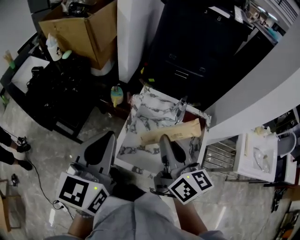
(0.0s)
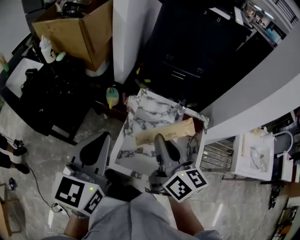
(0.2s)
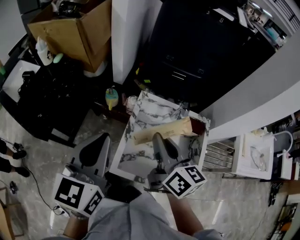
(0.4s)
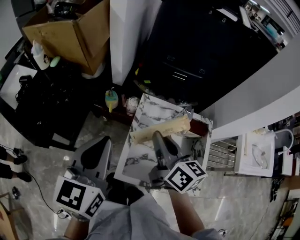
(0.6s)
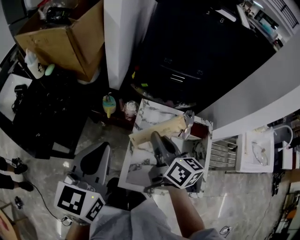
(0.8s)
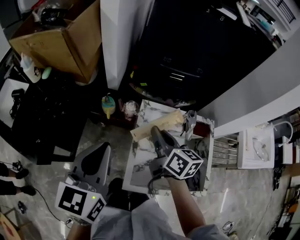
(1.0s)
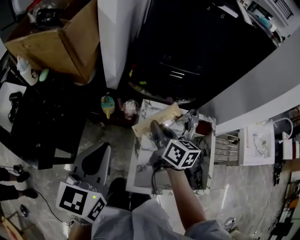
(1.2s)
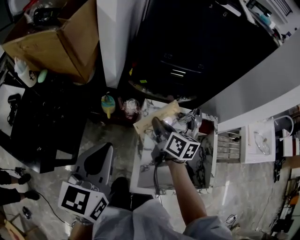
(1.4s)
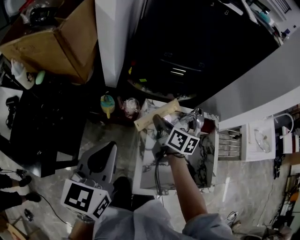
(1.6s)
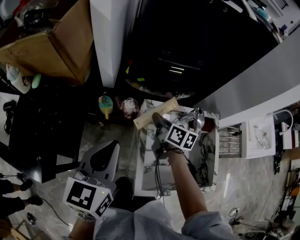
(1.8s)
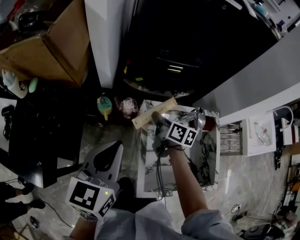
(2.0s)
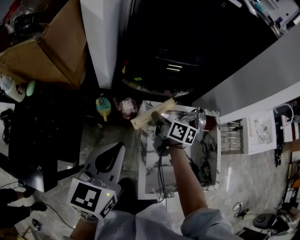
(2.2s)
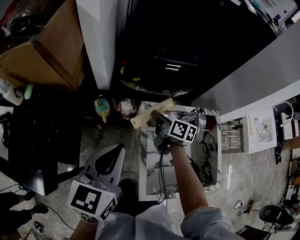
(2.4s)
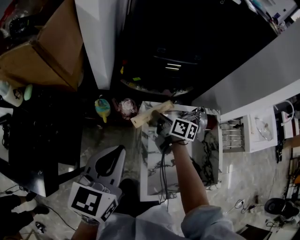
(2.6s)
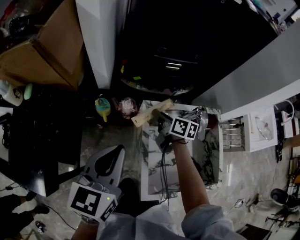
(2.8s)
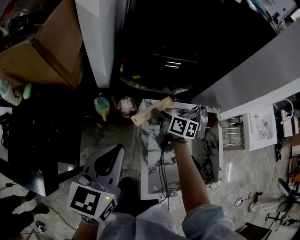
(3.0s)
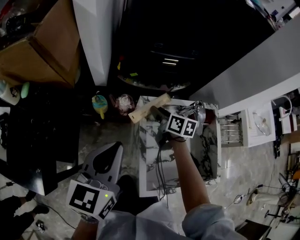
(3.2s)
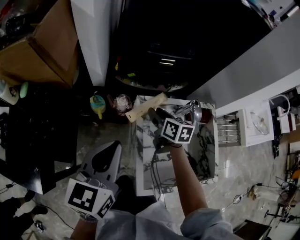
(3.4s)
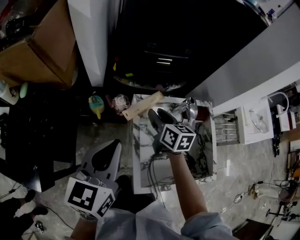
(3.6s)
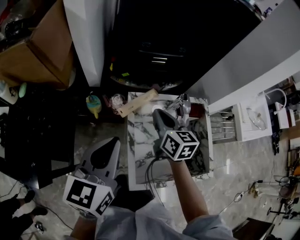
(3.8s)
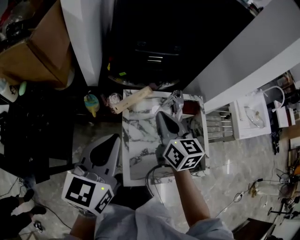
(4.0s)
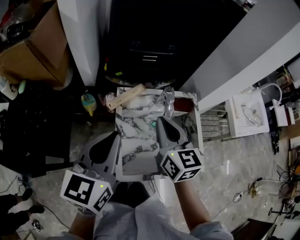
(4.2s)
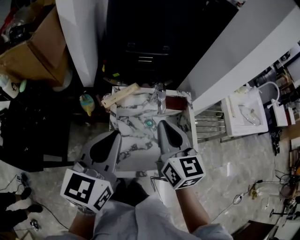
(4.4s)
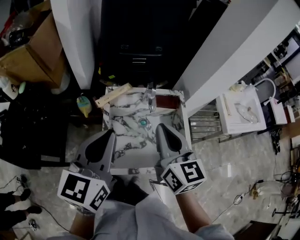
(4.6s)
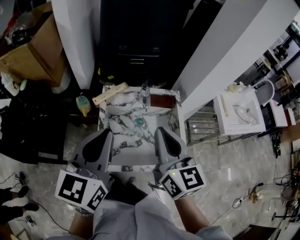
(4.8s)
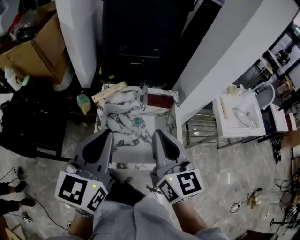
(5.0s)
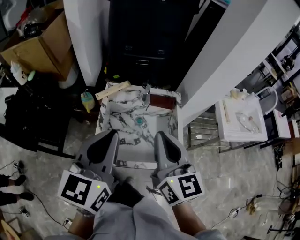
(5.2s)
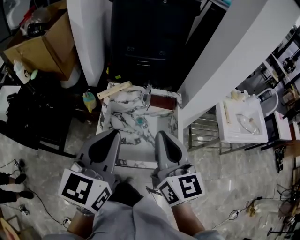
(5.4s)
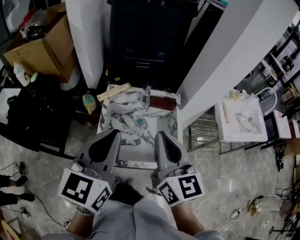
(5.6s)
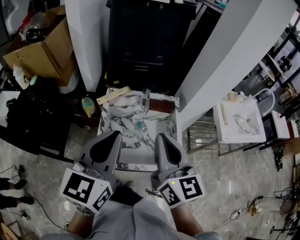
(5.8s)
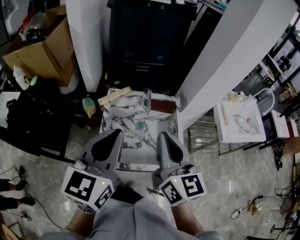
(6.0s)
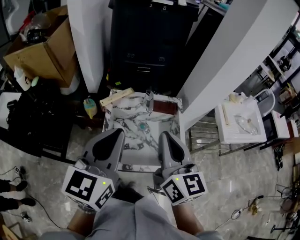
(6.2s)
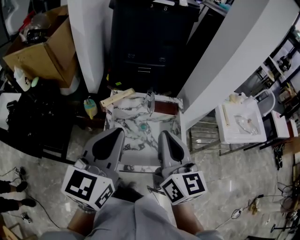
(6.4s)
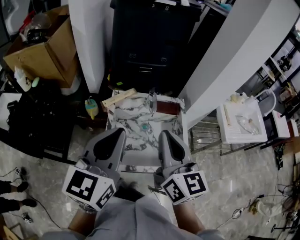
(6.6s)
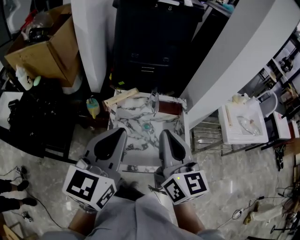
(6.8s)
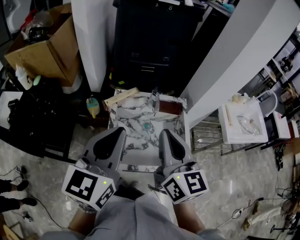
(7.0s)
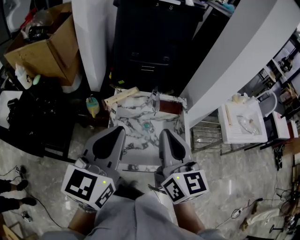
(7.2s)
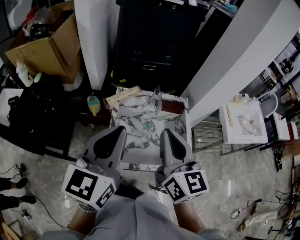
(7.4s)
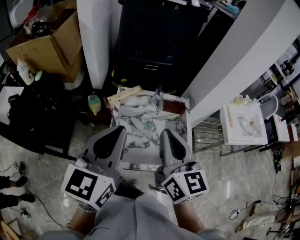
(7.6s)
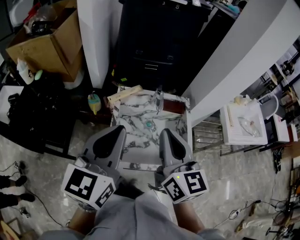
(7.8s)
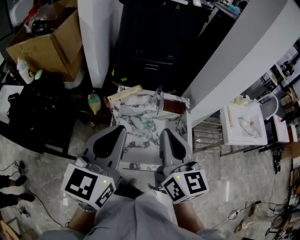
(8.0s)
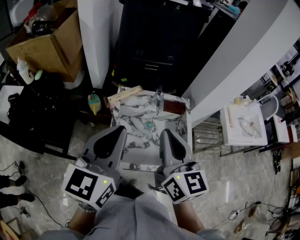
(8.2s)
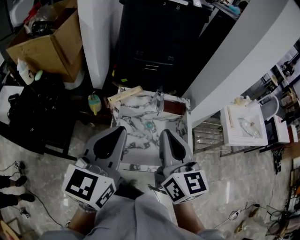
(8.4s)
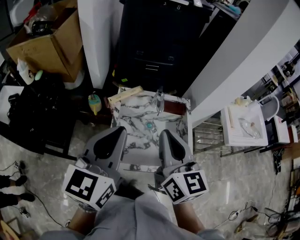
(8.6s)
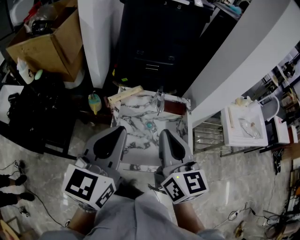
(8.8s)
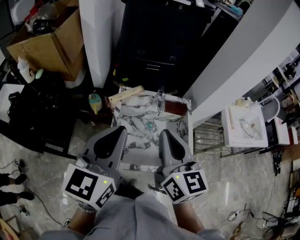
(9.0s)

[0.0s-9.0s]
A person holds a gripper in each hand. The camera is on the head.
0.0s to 1.6s: The right gripper travels forward and downward by about 30 cm, and changes its angle by about 30 degrees, while the left gripper moves forward, to the left and downward, some 20 cm.
1.6s to 3.0s: The right gripper moves downward and forward, some 10 cm, and opens its fingers; the left gripper shifts by about 5 cm.
3.0s to 4.4s: The right gripper travels upward, backward and to the right by roughly 35 cm, swivels some 40 degrees, and closes; the left gripper shifts about 20 cm to the right, backward and upward.
4.4s to 6.0s: The right gripper is displaced backward, to the right and upward by roughly 15 cm. Meanwhile the left gripper is displaced to the right, backward and upward by approximately 15 cm.
6.0s to 7.6s: The right gripper moves to the left, about 5 cm. Meanwhile the left gripper moves some 5 cm.
7.6s to 9.0s: The grippers move only a little.

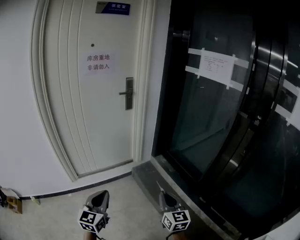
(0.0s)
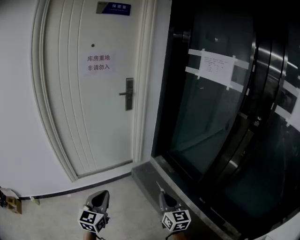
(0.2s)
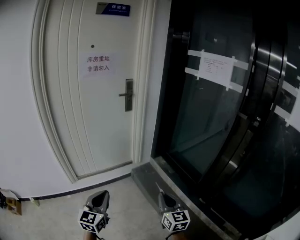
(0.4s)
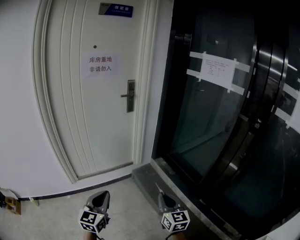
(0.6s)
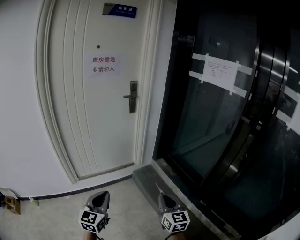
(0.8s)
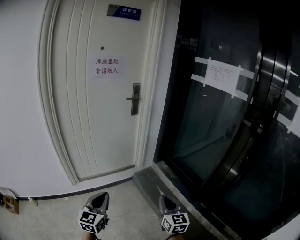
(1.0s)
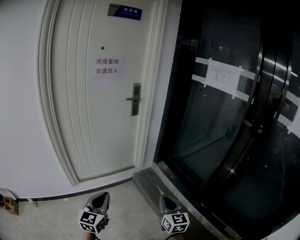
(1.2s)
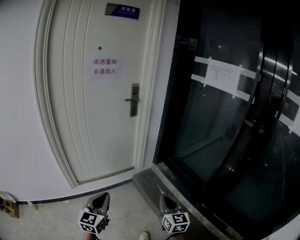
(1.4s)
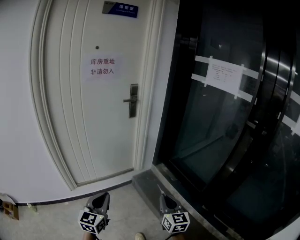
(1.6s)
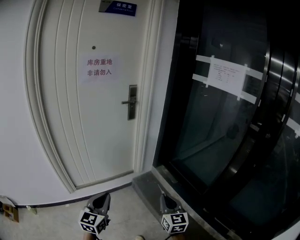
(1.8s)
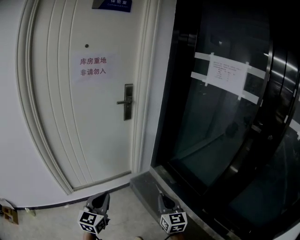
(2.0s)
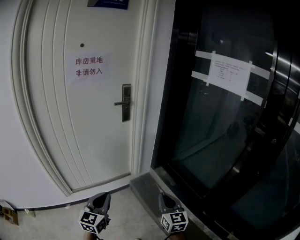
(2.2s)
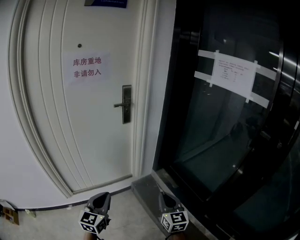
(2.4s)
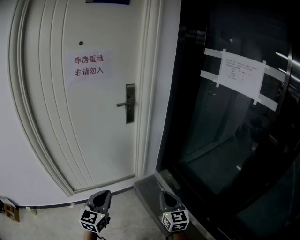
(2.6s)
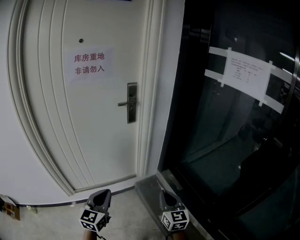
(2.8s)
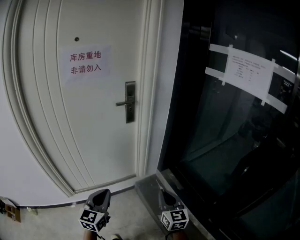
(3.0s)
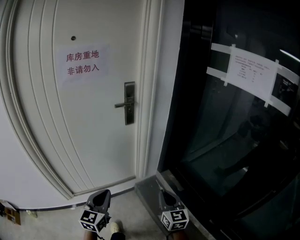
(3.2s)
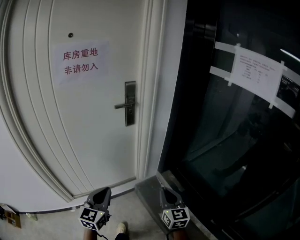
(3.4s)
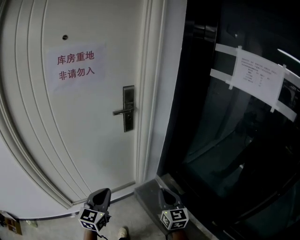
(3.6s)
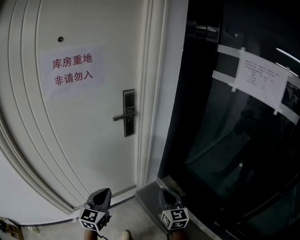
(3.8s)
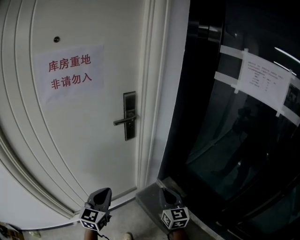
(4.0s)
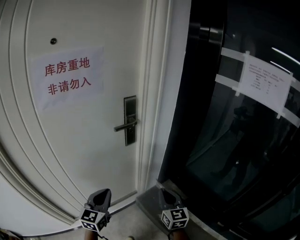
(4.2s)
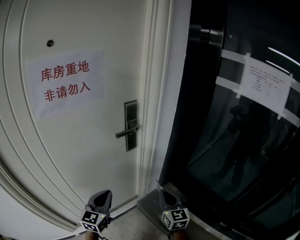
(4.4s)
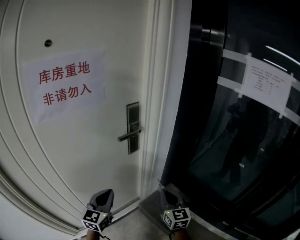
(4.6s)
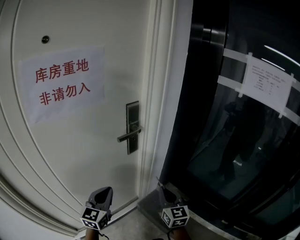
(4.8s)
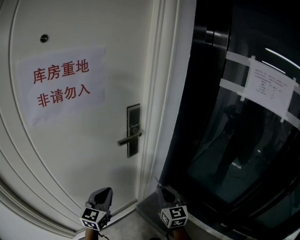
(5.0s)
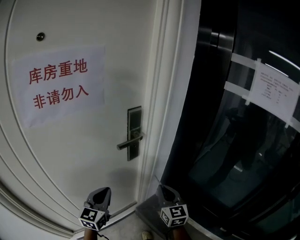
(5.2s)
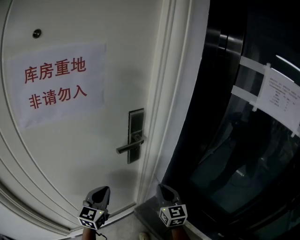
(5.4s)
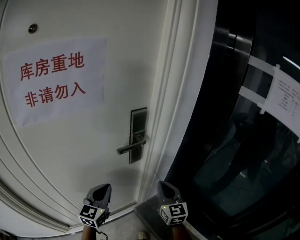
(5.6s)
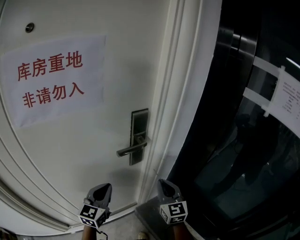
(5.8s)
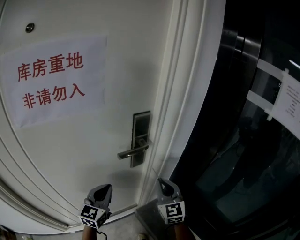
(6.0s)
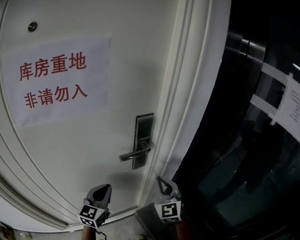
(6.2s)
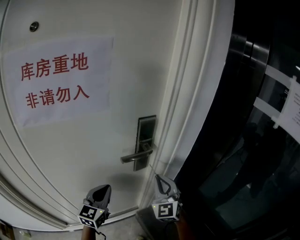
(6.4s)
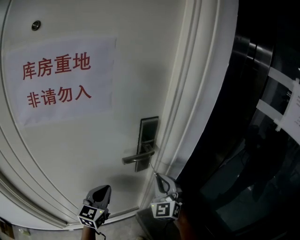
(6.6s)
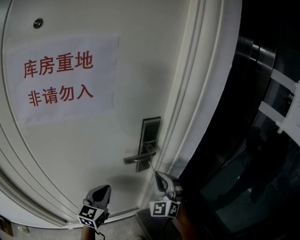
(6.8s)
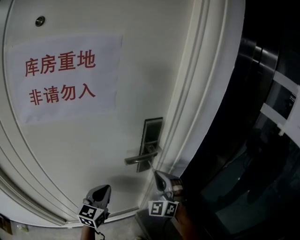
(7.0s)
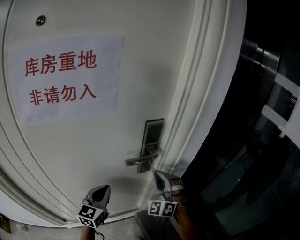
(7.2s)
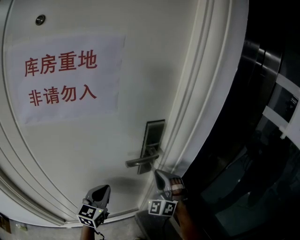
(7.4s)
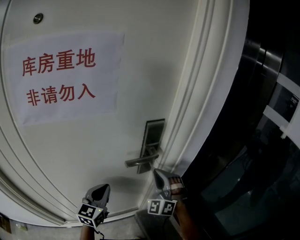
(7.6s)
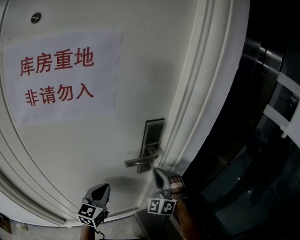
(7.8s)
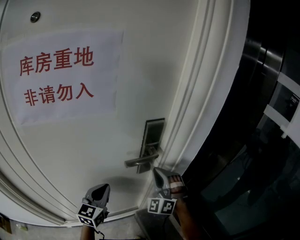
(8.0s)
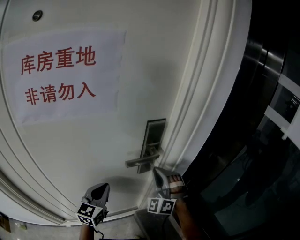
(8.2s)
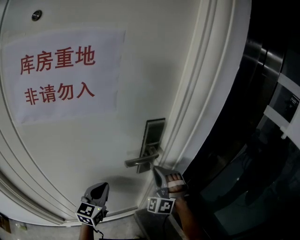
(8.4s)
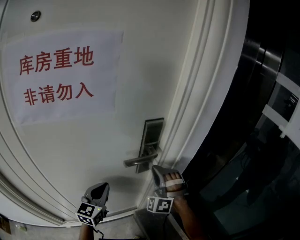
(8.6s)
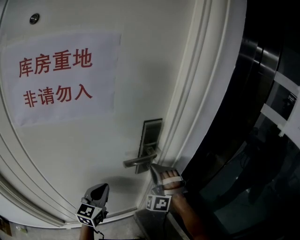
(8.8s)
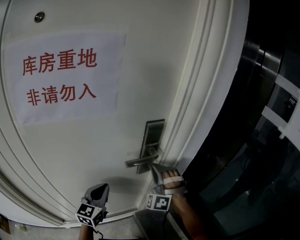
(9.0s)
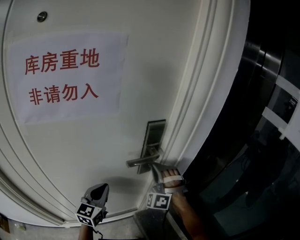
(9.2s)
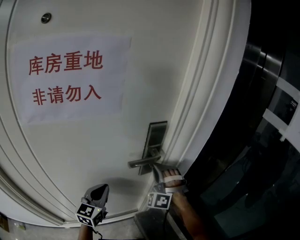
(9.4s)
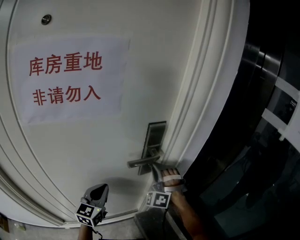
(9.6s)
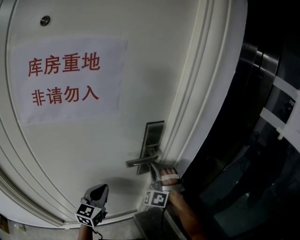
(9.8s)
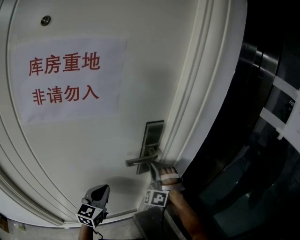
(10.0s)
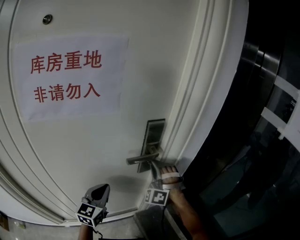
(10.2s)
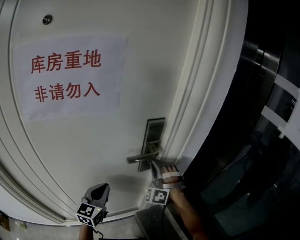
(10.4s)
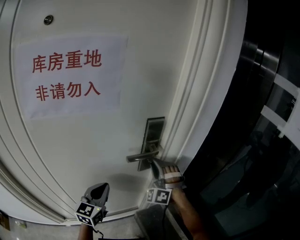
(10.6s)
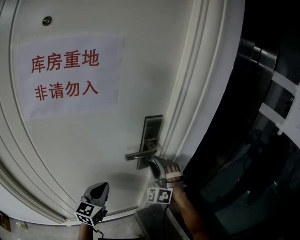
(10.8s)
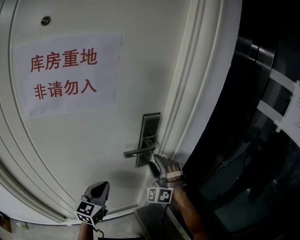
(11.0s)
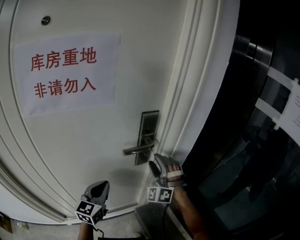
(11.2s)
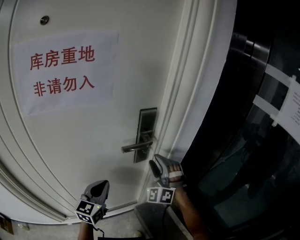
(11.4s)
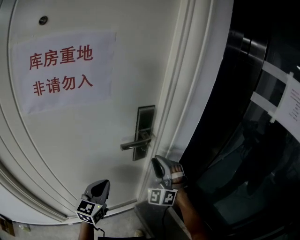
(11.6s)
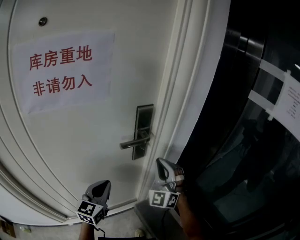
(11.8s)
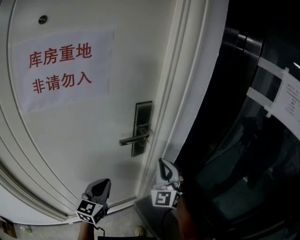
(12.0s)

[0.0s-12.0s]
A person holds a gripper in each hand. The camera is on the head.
0.0s to 1.6s: The grippers both shift forward and to the left by approximately 10 cm.
1.6s to 3.0s: The two grippers go about 25 cm forward.
3.0s to 4.4s: The two grippers go about 25 cm forward and to the left.
4.4s to 6.0s: The two grippers go roughly 15 cm forward. The right gripper changes its angle by roughly 20 degrees.
6.0s to 7.6s: The right gripper goes approximately 10 cm forward and to the left, and rolls counterclockwise, seen from behind, by some 50 degrees.
7.6s to 9.0s: The right gripper rotates approximately 20 degrees.
9.0s to 10.4s: The grippers stay close to where they were, moving slightly.
10.4s to 12.0s: The right gripper heads backward and to the right, covering approximately 15 cm, twists approximately 40 degrees clockwise, seen from behind, and opens, then closes once more. The left gripper shifts by approximately 5 cm.

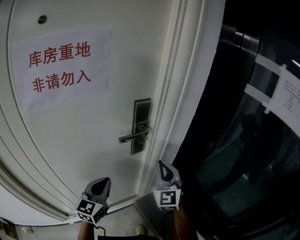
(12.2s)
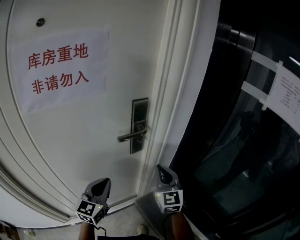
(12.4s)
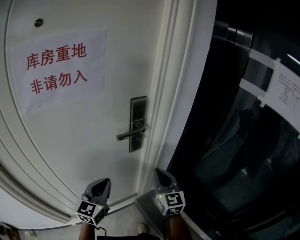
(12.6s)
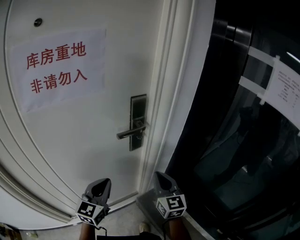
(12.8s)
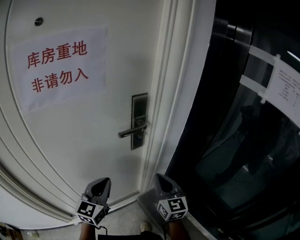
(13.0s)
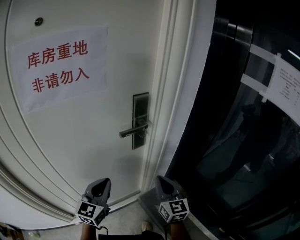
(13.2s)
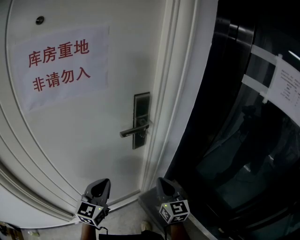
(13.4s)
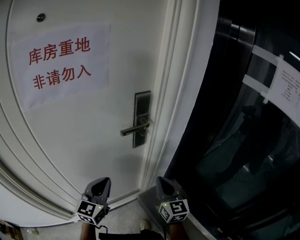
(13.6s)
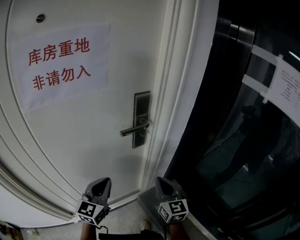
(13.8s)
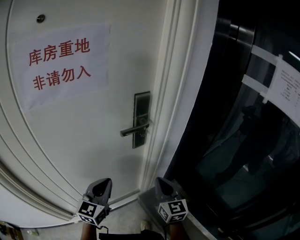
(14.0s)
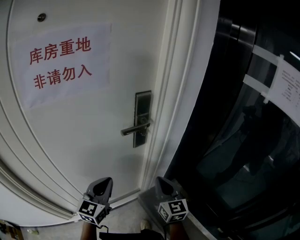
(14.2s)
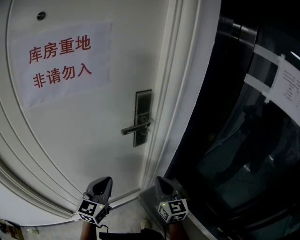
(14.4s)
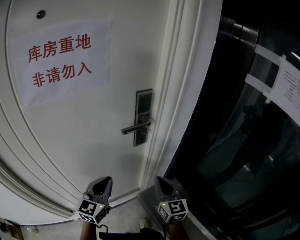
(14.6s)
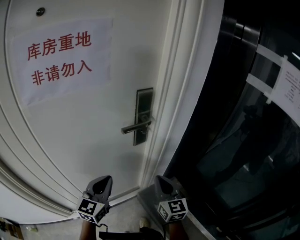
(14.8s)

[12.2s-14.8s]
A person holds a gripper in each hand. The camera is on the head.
12.2s to 13.4s: The right gripper is displaced downward and backward by approximately 10 cm, and changes its angle by approximately 30 degrees.
13.4s to 14.8s: Both grippers stay about where they are.
